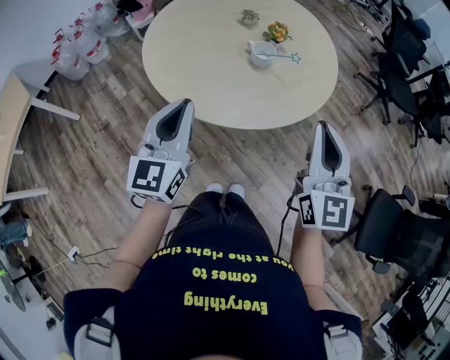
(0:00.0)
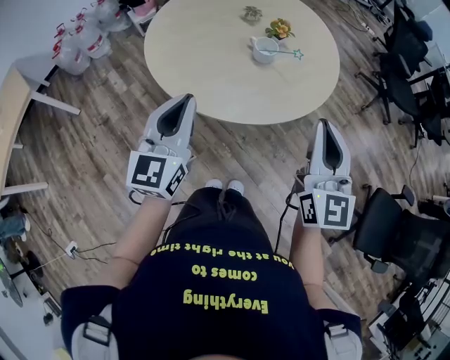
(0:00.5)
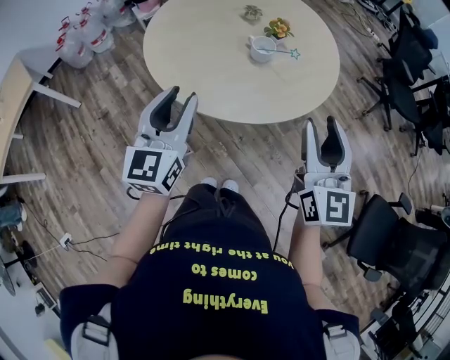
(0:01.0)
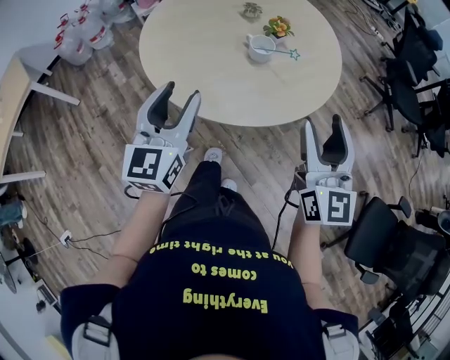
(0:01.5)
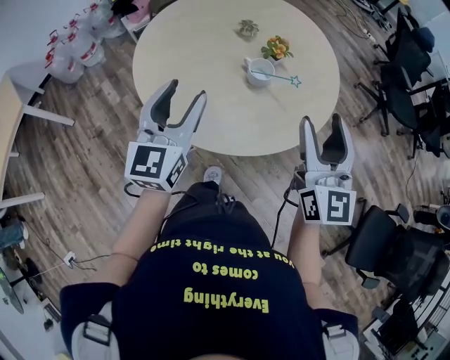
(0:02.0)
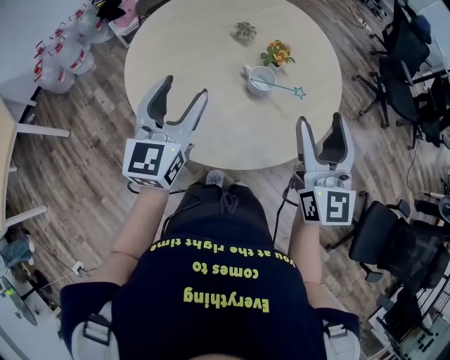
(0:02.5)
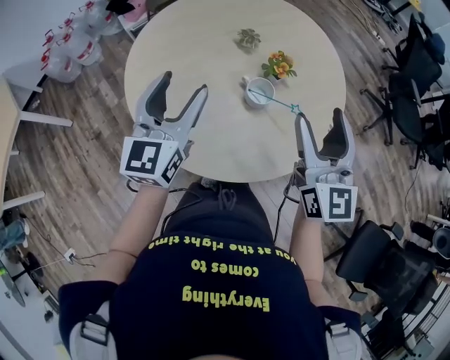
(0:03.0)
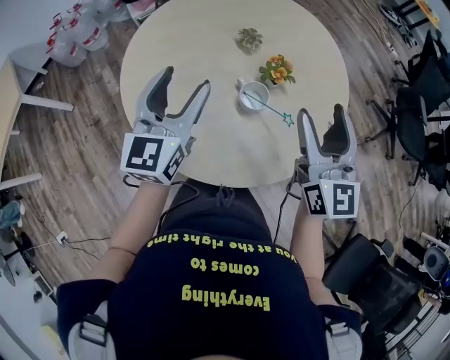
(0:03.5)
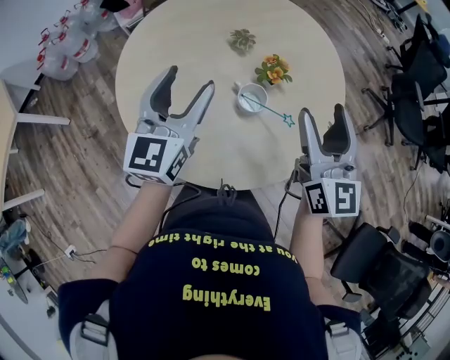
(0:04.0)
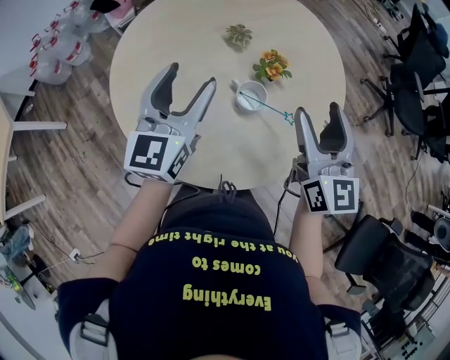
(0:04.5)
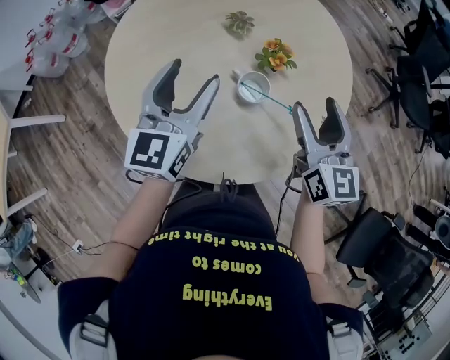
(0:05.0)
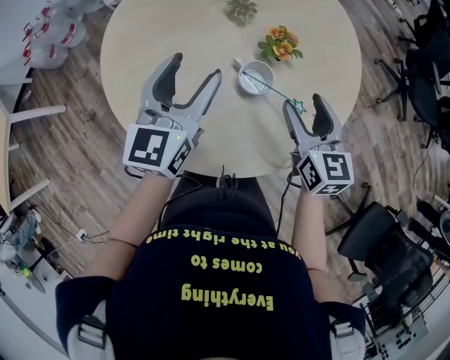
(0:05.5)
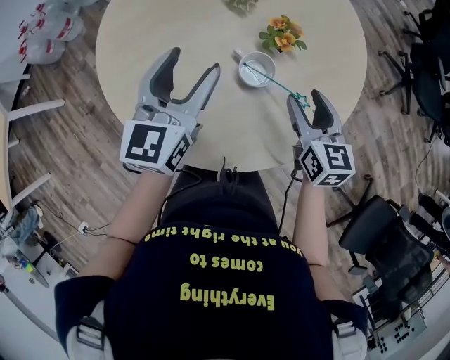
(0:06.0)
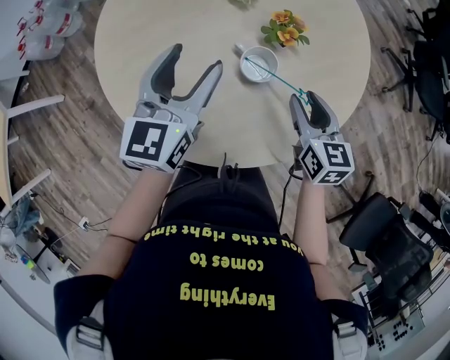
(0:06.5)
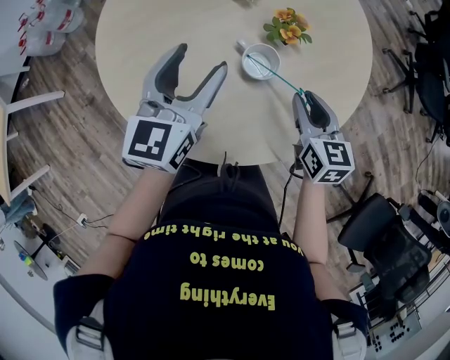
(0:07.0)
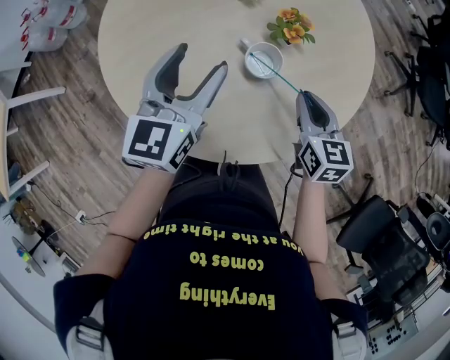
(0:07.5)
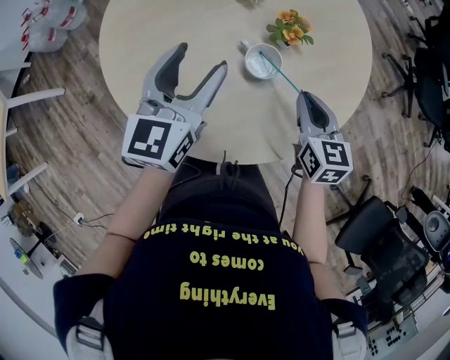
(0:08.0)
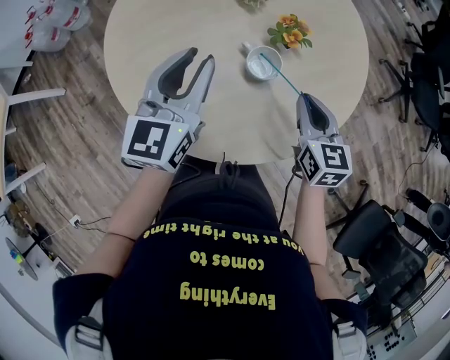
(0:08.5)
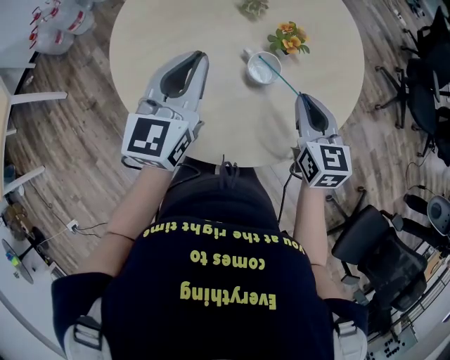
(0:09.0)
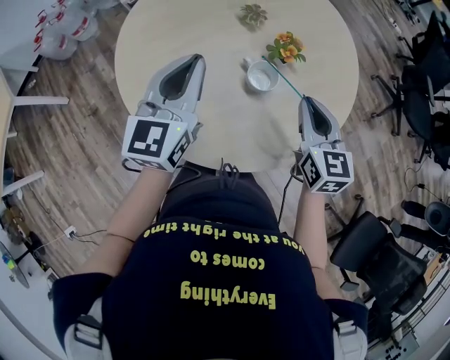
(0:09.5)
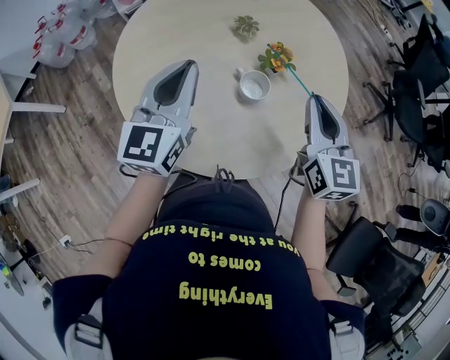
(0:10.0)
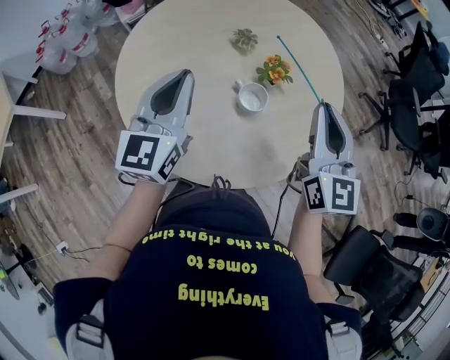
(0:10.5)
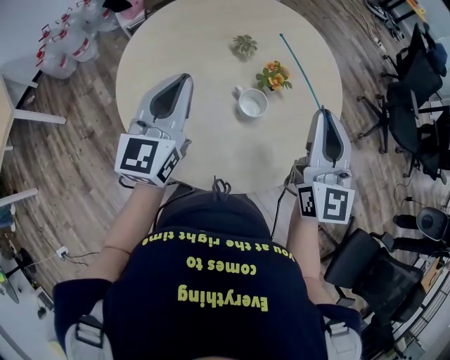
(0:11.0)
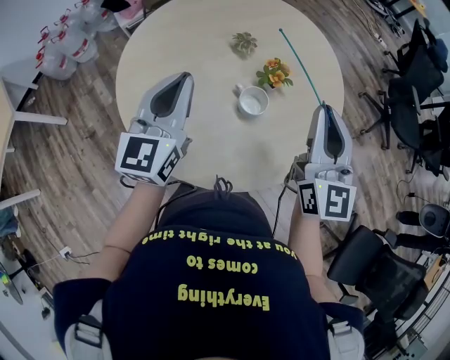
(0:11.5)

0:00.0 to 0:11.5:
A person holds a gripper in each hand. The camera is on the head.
0:00.0 to 0:02.0: The grippers both shift forward by some 15 cm. The left gripper opens its fingers; the right gripper opens its fingers.
0:02.0 to 0:04.0: The grippers both shift forward by some 20 cm.
0:04.0 to 0:06.0: The left gripper moves downward, approximately 10 cm, while the right gripper moves downward, about 20 cm, and rotates about 30 degrees.
0:06.0 to 0:07.5: The right gripper closes its fingers.
0:07.5 to 0:09.5: The right gripper moves upward, some 10 cm. The left gripper moves upward, about 5 cm, and closes its fingers.
0:09.5 to 0:11.5: The right gripper shifts about 15 cm upward, and turns by approximately 30 degrees.

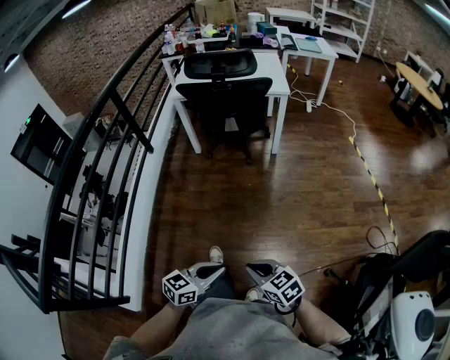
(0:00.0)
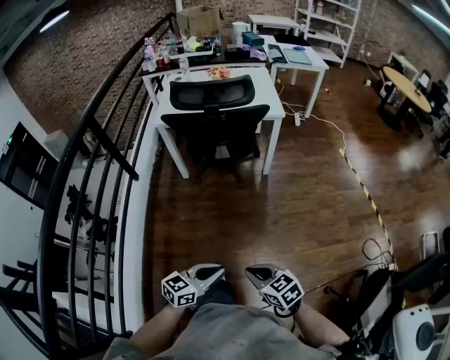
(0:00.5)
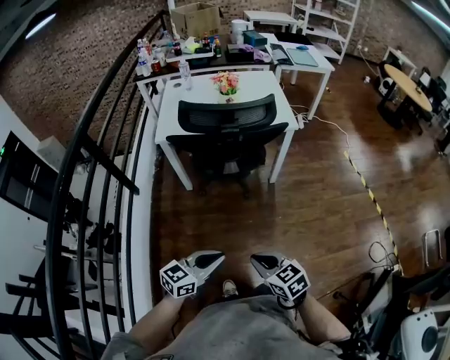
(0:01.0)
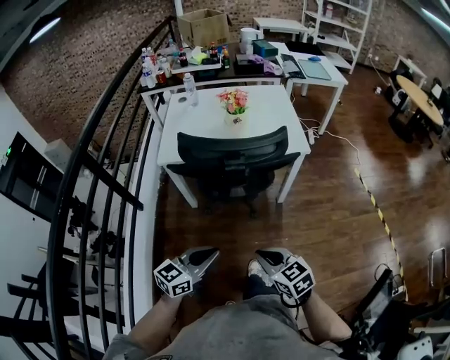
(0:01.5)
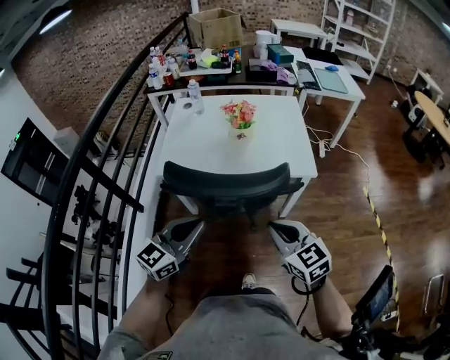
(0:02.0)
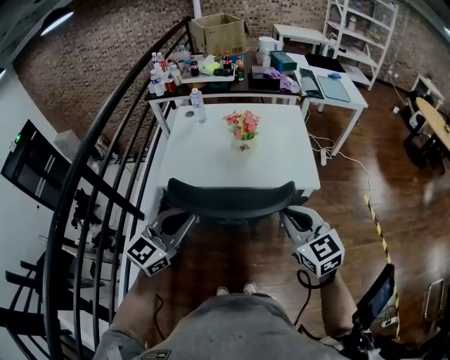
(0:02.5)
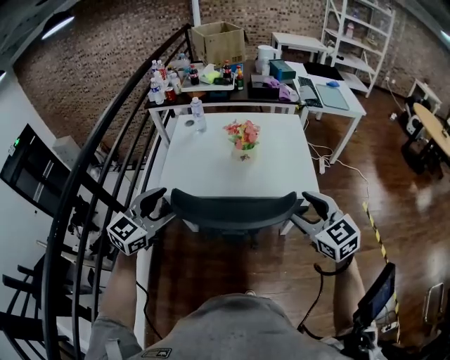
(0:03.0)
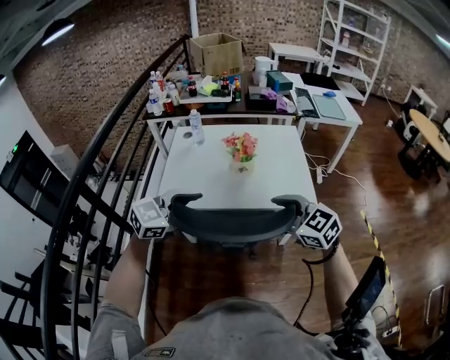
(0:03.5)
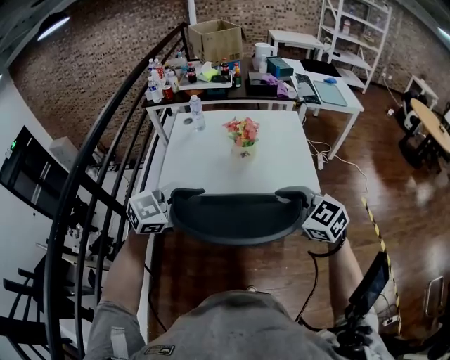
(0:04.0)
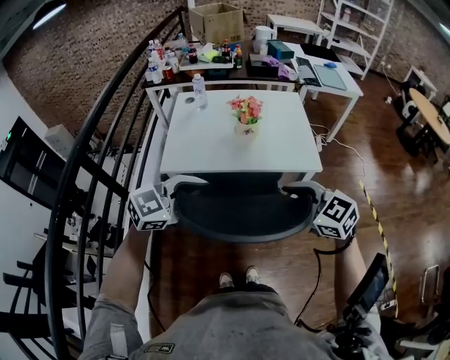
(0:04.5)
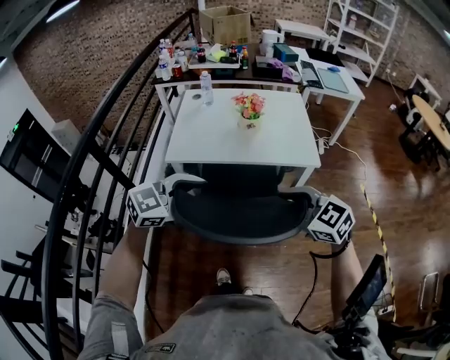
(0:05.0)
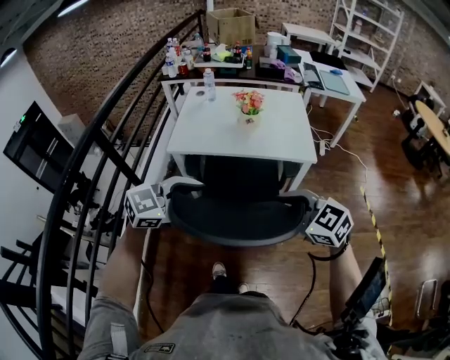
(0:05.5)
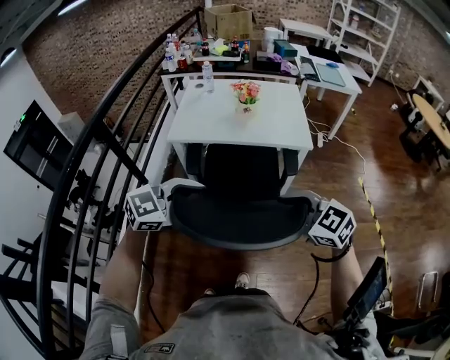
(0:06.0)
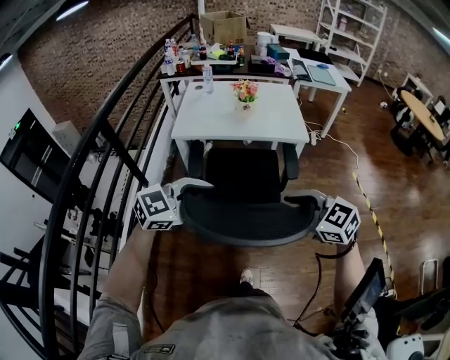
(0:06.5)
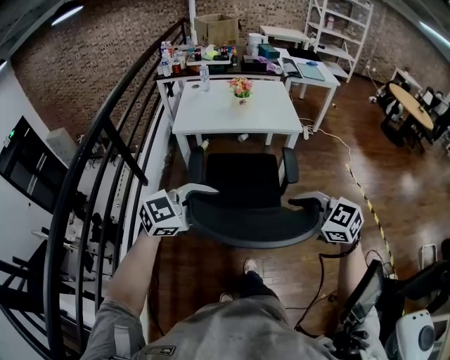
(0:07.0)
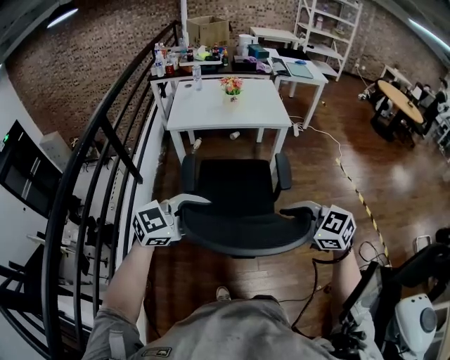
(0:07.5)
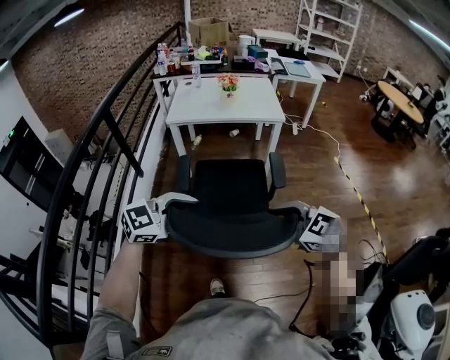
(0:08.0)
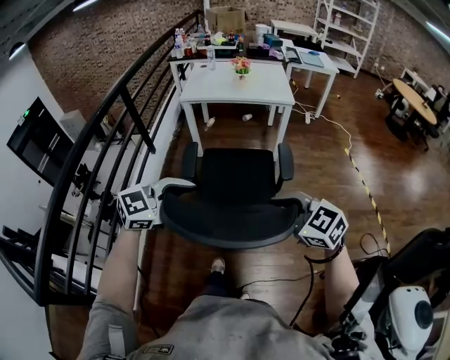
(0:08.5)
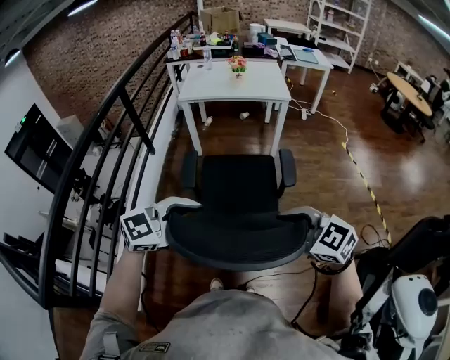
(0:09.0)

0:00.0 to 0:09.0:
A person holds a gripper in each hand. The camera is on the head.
0:00.0 to 0:02.0: Both grippers are carried forward, roughly 70 cm. The right gripper swivels approximately 20 degrees, while the left gripper changes its angle by approximately 30 degrees.
0:02.0 to 0:04.5: The left gripper goes forward and returns, some 15 cm each way, changes its angle by some 30 degrees, and opens up; the right gripper goes some 5 cm upward, moves roughly 15 cm forward and comes back, and opens up.
0:04.5 to 0:07.0: The left gripper changes place by some 35 cm, while the right gripper changes place by roughly 35 cm.
0:07.0 to 0:09.0: The right gripper changes place by approximately 30 cm. Meanwhile the left gripper moves roughly 30 cm.

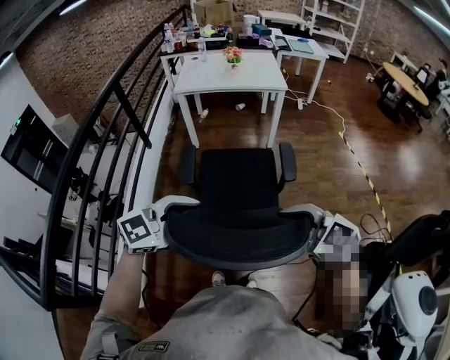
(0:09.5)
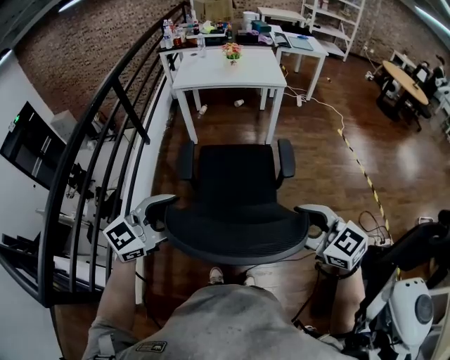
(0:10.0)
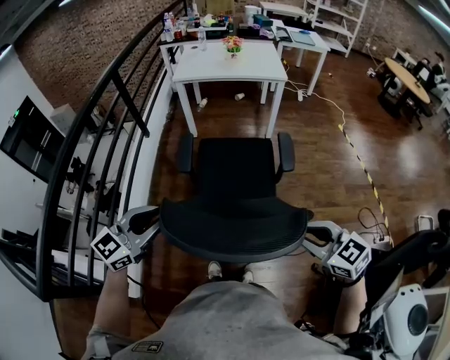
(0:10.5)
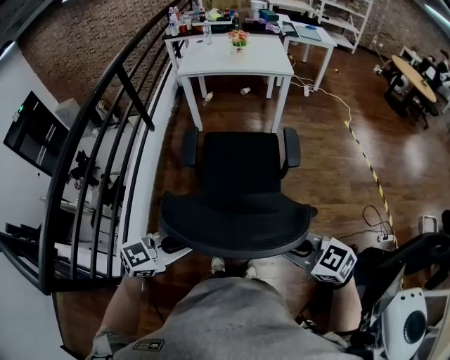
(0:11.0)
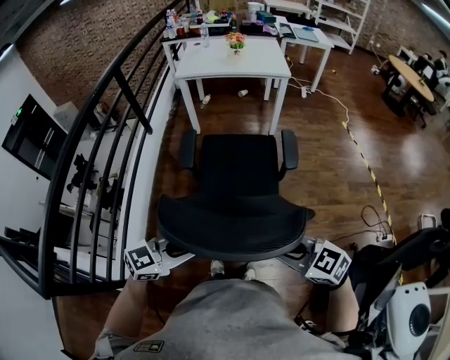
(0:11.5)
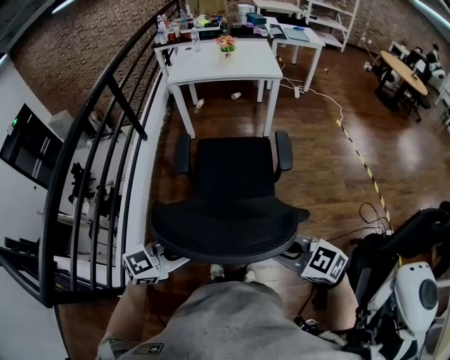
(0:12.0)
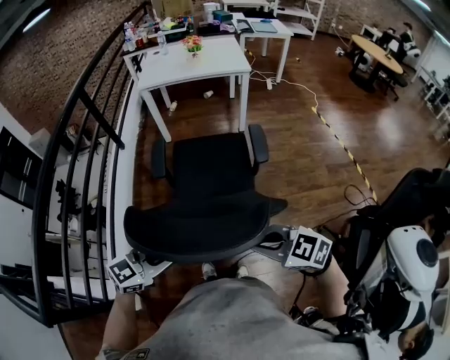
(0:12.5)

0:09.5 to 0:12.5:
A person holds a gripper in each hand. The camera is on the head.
0:09.5 to 0:11.0: The left gripper travels downward by roughly 10 cm, and closes its fingers, while the right gripper changes place by about 10 cm, and closes its fingers.
0:11.0 to 0:12.5: There are only small adjustments of the grippers.

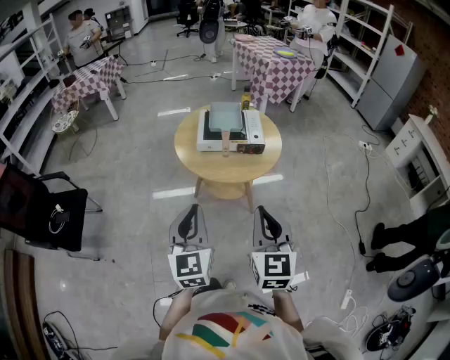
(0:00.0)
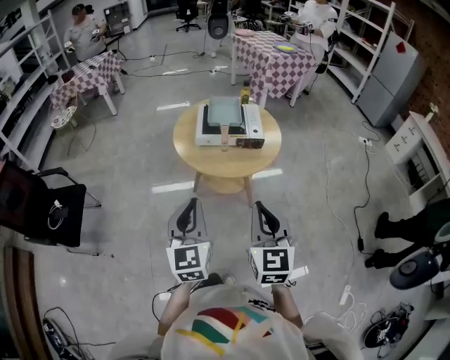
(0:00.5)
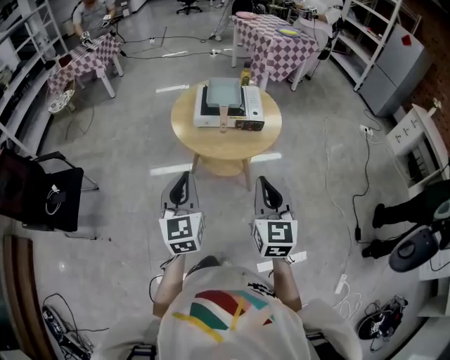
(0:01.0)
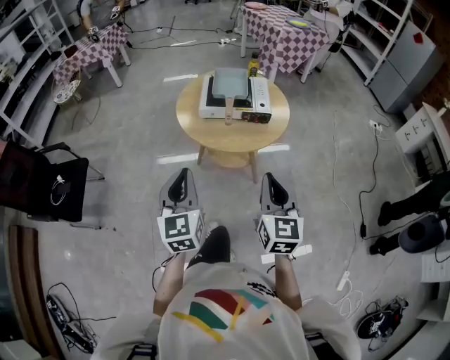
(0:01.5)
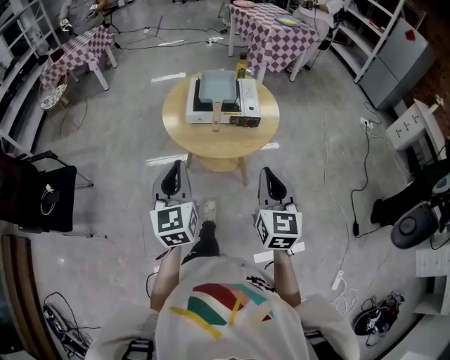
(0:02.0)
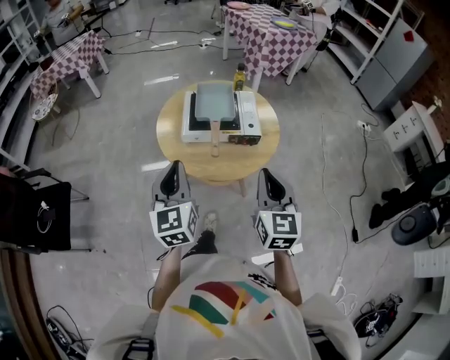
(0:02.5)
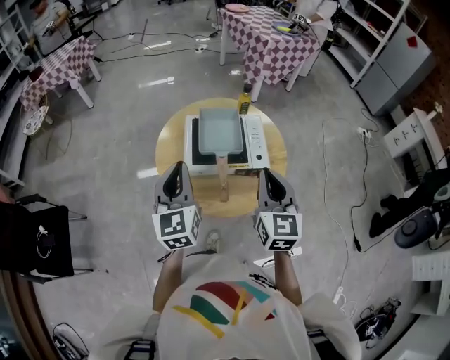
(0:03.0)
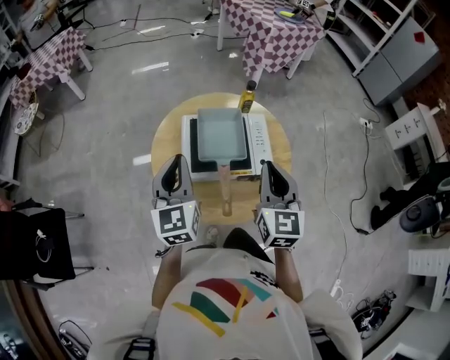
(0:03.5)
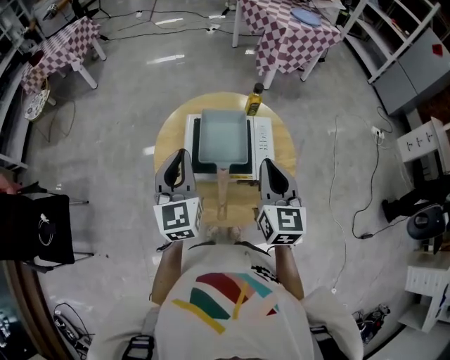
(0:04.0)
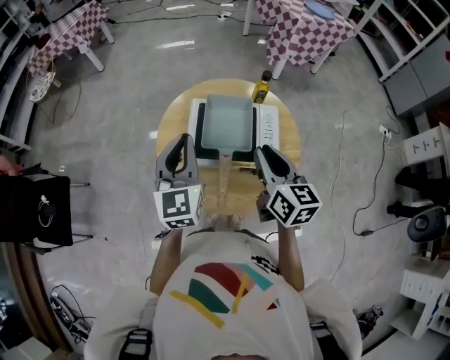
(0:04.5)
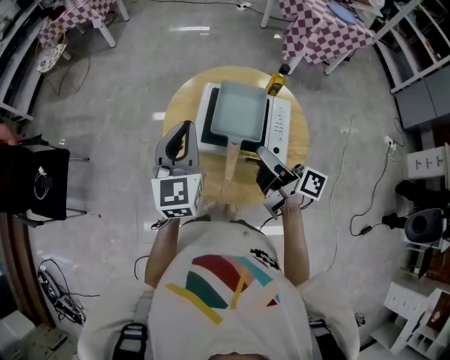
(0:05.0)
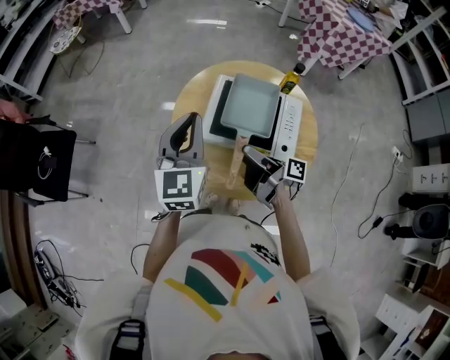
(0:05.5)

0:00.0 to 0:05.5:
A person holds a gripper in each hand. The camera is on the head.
0:00.0 to 0:02.0: The left gripper shifts roughly 10 cm forward. The right gripper goes some 10 cm forward and to the right.
0:02.0 to 0:03.5: Both grippers travel together forward, some 35 cm.
0:03.5 to 0:05.5: The right gripper shifts about 15 cm downward, swivels roughly 100 degrees, and opens.
